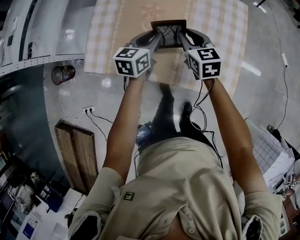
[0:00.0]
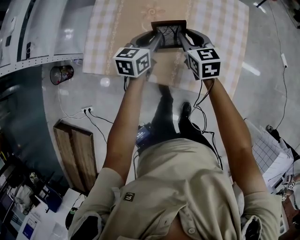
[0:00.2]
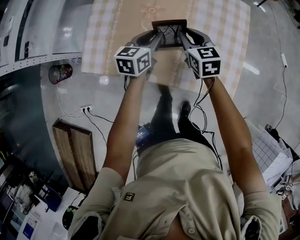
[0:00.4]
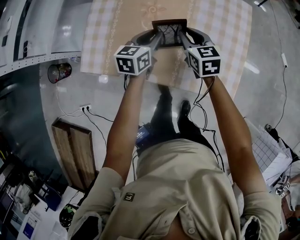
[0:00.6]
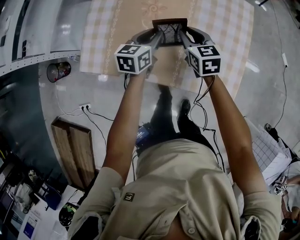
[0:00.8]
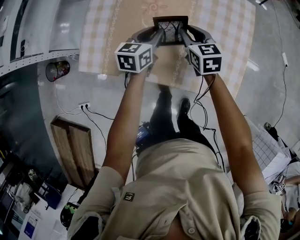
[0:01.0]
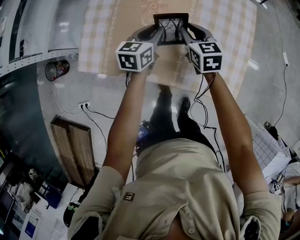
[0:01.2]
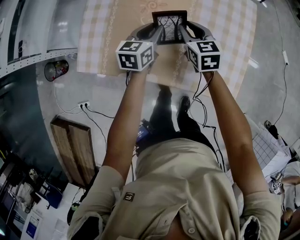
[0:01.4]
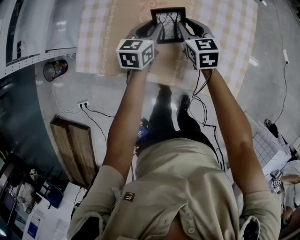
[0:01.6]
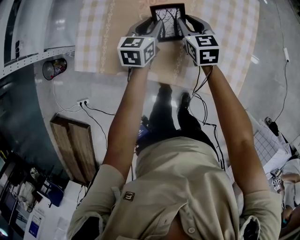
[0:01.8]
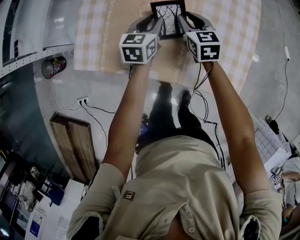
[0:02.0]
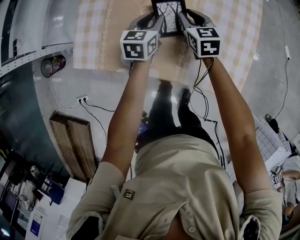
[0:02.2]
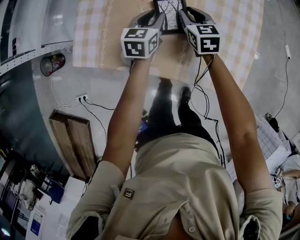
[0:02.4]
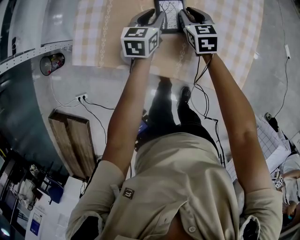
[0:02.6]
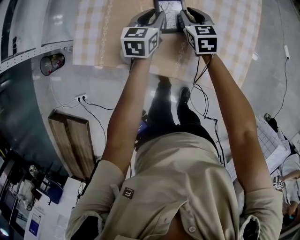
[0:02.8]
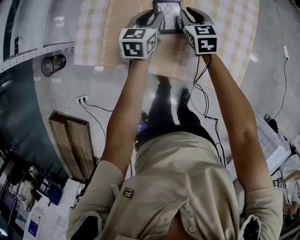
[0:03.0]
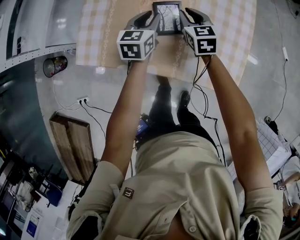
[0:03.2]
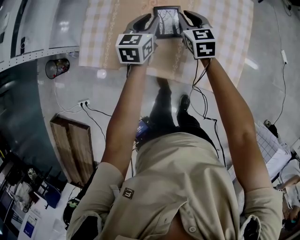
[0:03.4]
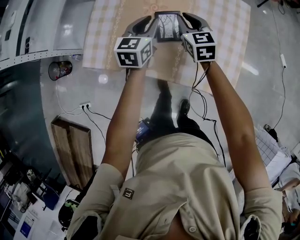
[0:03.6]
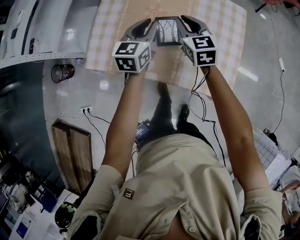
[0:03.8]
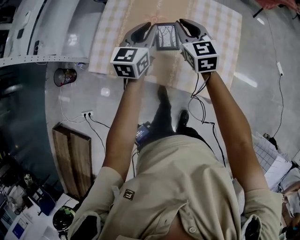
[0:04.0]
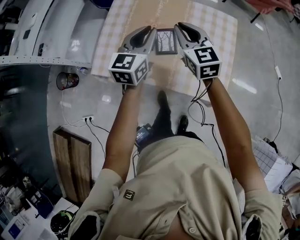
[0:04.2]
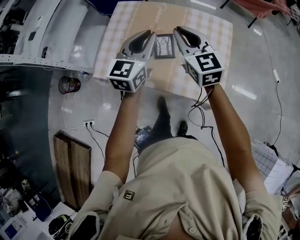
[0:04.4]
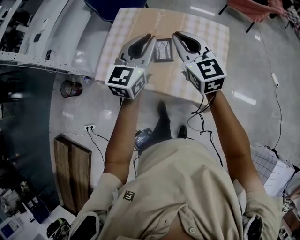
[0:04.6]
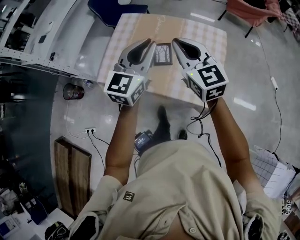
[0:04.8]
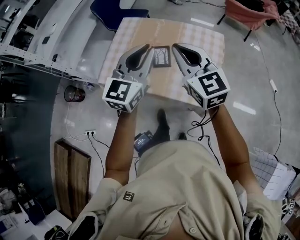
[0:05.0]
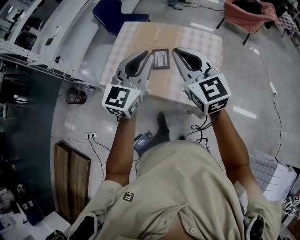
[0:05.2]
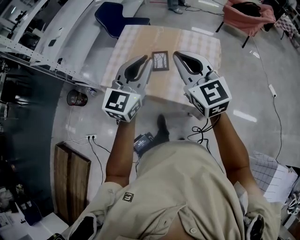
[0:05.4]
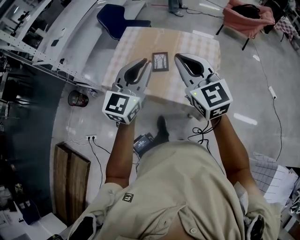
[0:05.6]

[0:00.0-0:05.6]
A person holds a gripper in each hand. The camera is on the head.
0:00.0 to 0:01.4: The grippers both shift downward by roughly 5 cm.
0:01.4 to 0:02.8: There are only small adjustments of the grippers.
0:02.8 to 0:04.2: Both grippers travel together upward, approximately 25 cm. The left gripper swivels about 20 degrees. The right gripper swivels roughly 20 degrees.
0:04.2 to 0:05.6: Both grippers move backward and upward, approximately 25 cm.

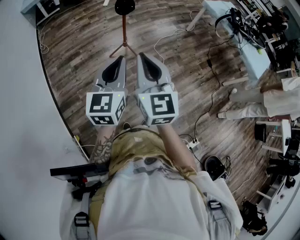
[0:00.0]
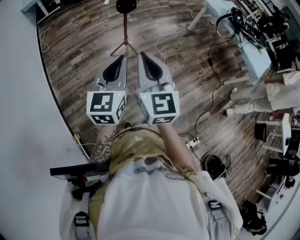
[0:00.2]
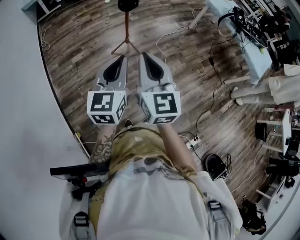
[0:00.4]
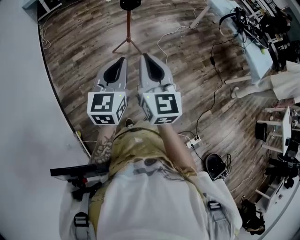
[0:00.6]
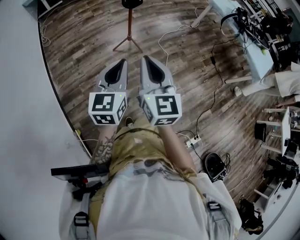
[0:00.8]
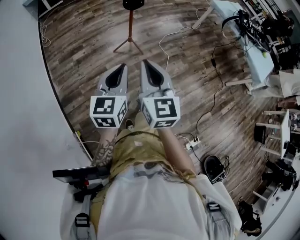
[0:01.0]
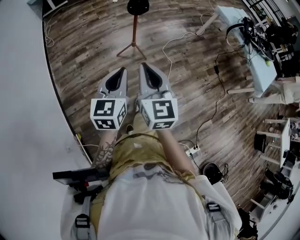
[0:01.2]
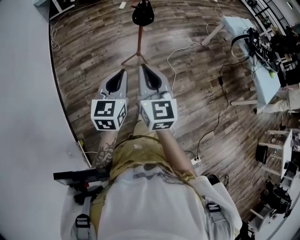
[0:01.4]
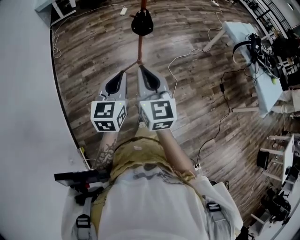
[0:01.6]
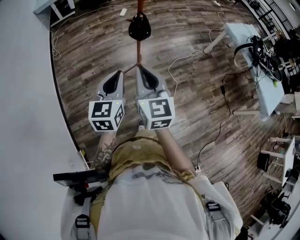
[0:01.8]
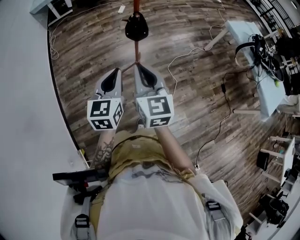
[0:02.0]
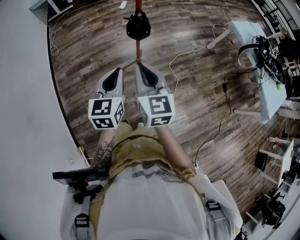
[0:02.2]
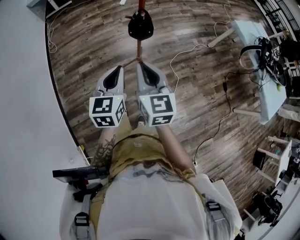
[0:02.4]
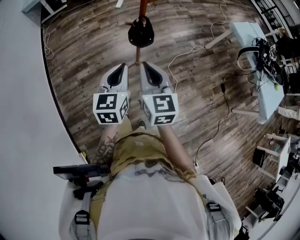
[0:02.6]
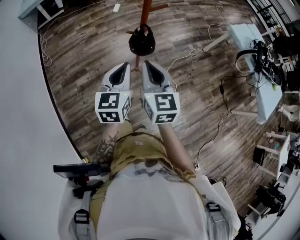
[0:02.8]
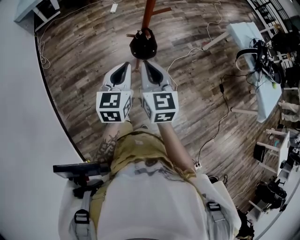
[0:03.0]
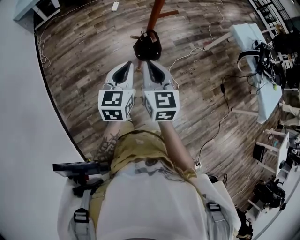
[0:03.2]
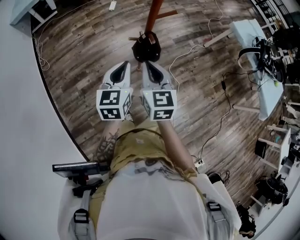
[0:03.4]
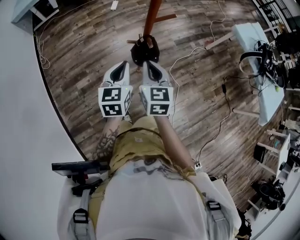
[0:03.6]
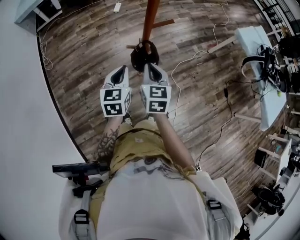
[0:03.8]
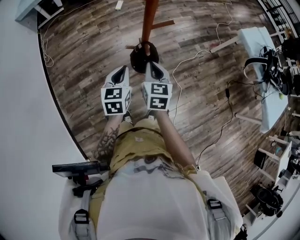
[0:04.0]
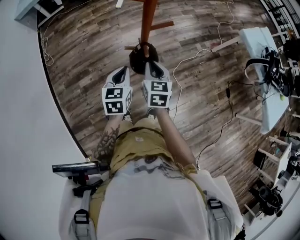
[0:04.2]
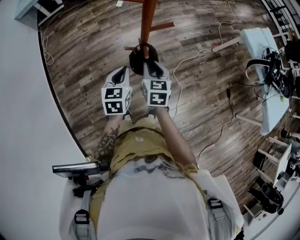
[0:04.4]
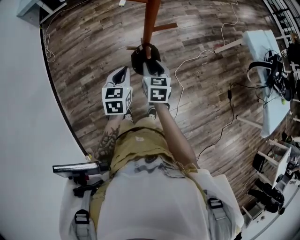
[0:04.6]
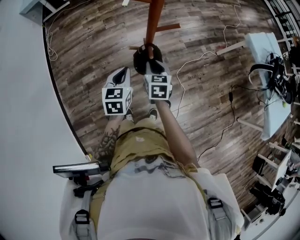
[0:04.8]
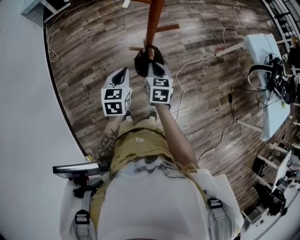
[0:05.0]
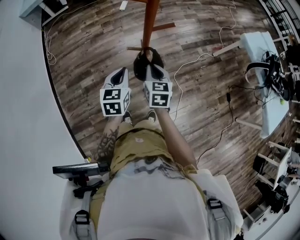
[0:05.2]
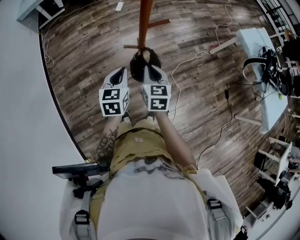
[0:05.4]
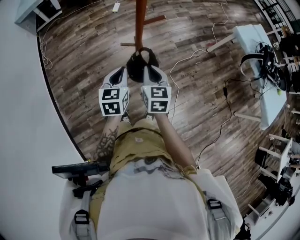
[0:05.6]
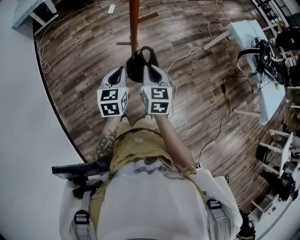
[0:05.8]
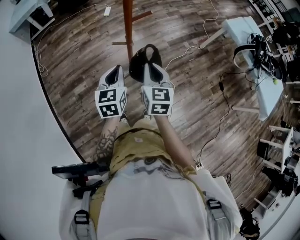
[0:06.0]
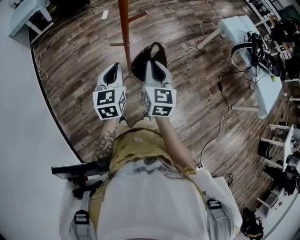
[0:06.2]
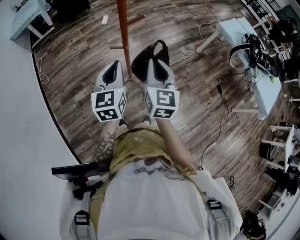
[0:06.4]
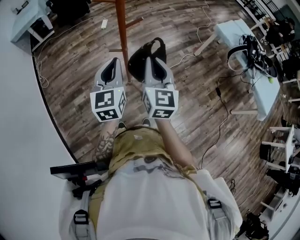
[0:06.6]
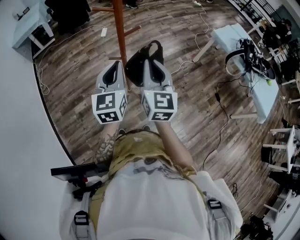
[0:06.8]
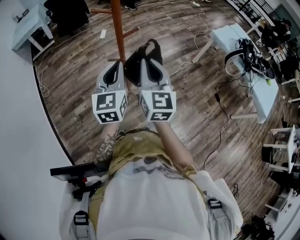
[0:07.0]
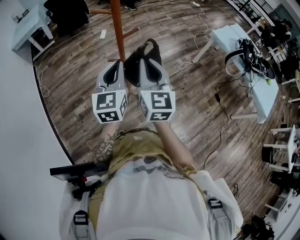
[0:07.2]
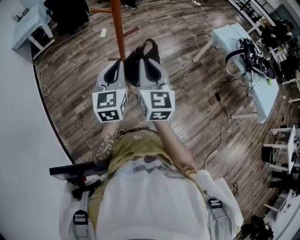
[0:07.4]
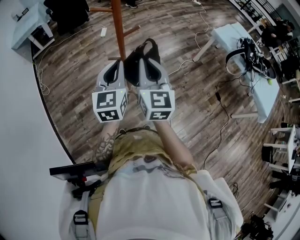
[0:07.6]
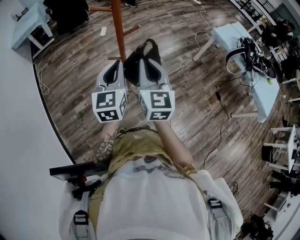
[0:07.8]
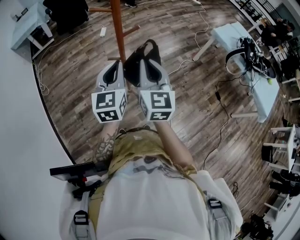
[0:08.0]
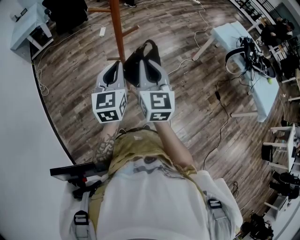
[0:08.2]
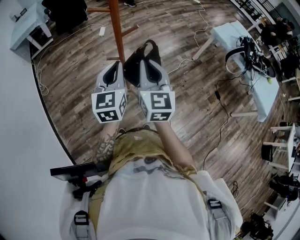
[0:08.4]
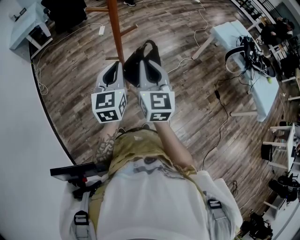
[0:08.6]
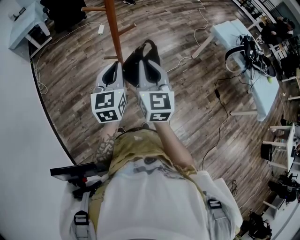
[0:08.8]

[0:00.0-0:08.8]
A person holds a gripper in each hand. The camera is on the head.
0:00.0 to 0:01.4: The right gripper moves forward, to the left and downward, roughly 15 cm. The left gripper goes roughly 15 cm forward, downward and to the left.
0:01.4 to 0:03.0: Both grippers travel together forward, roughly 35 cm.
0:03.0 to 0:04.4: The left gripper travels forward and downward by about 15 cm. The right gripper travels downward and forward by about 20 cm, and opens its fingers.
0:04.4 to 0:05.8: The left gripper travels backward by about 5 cm. Meanwhile the right gripper travels backward and upward by about 10 cm.
0:05.8 to 0:07.4: Both grippers travel together upward, some 15 cm. The right gripper changes its angle by roughly 20 degrees. Meanwhile the left gripper turns by about 20 degrees.
0:07.4 to 0:08.8: There are only small adjustments of the grippers.

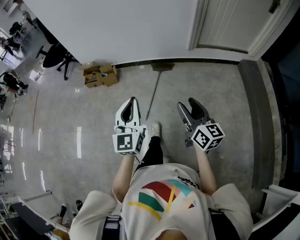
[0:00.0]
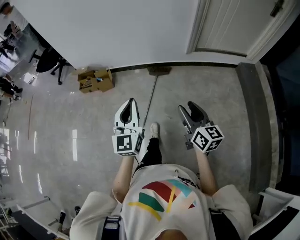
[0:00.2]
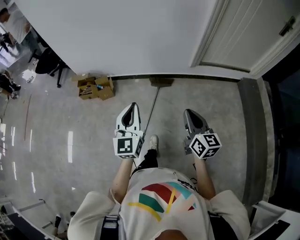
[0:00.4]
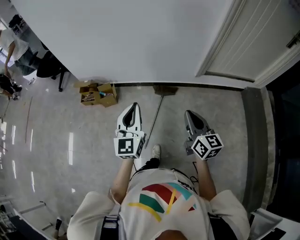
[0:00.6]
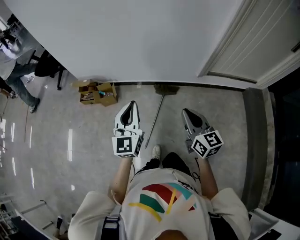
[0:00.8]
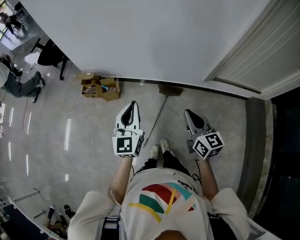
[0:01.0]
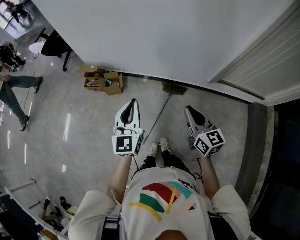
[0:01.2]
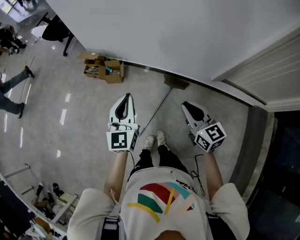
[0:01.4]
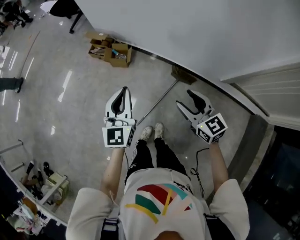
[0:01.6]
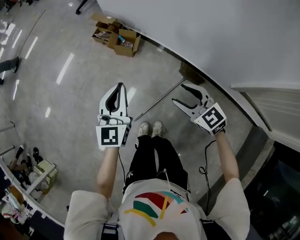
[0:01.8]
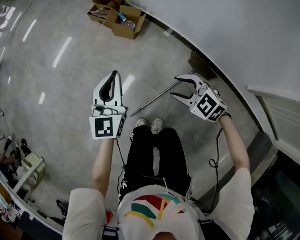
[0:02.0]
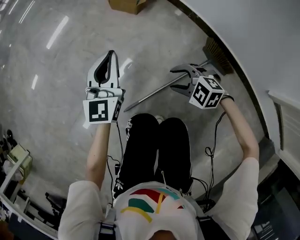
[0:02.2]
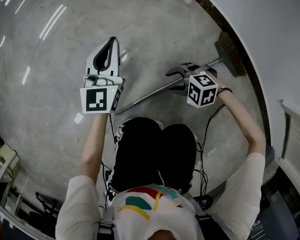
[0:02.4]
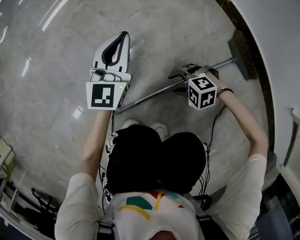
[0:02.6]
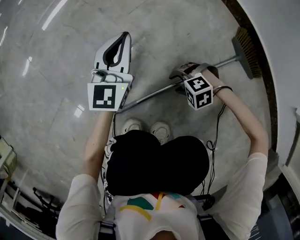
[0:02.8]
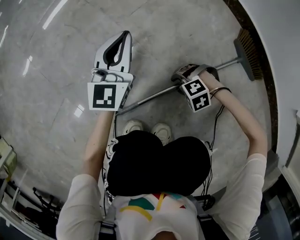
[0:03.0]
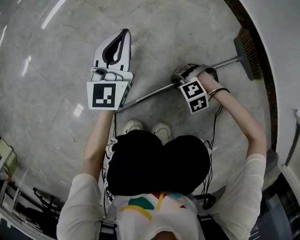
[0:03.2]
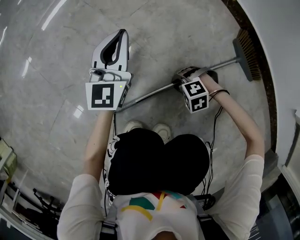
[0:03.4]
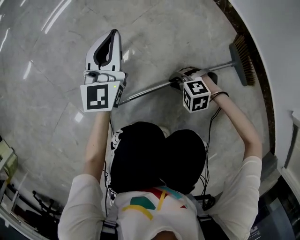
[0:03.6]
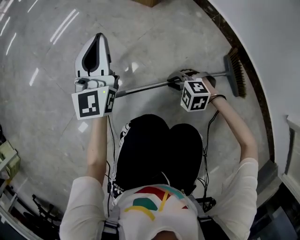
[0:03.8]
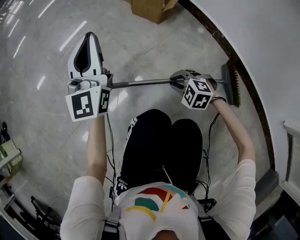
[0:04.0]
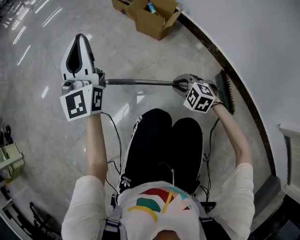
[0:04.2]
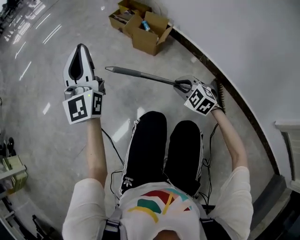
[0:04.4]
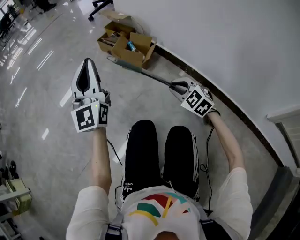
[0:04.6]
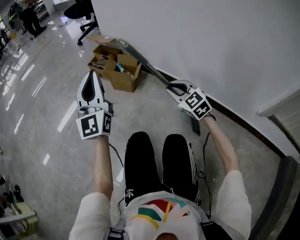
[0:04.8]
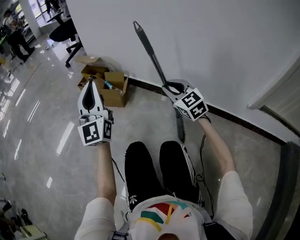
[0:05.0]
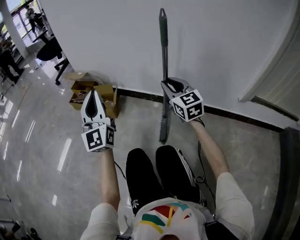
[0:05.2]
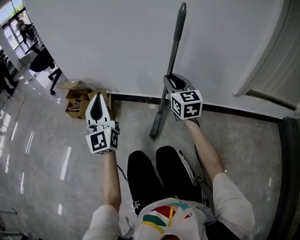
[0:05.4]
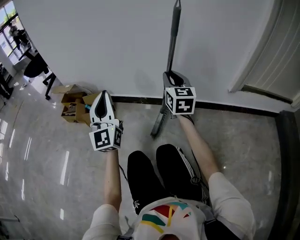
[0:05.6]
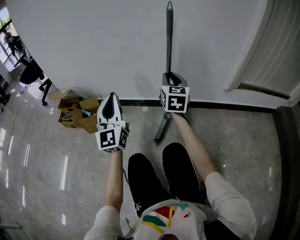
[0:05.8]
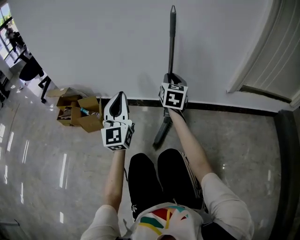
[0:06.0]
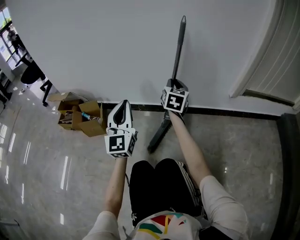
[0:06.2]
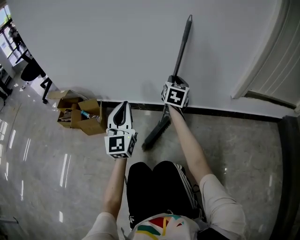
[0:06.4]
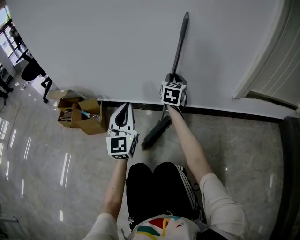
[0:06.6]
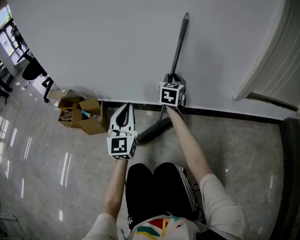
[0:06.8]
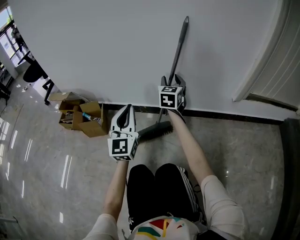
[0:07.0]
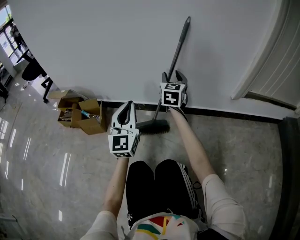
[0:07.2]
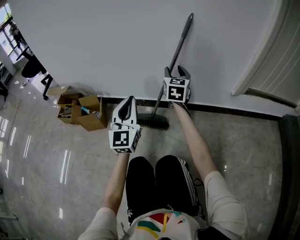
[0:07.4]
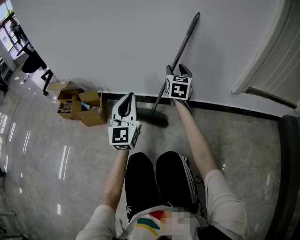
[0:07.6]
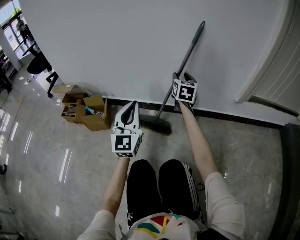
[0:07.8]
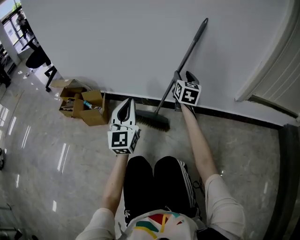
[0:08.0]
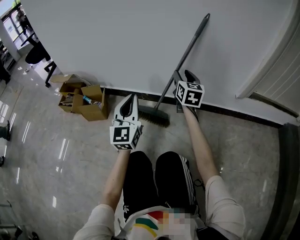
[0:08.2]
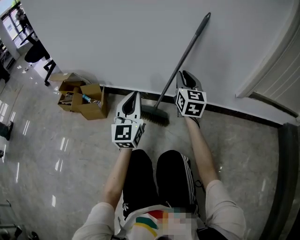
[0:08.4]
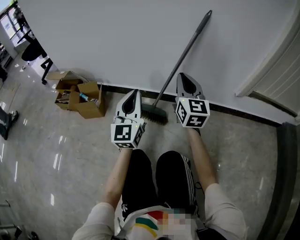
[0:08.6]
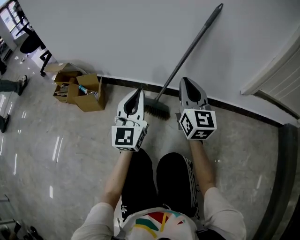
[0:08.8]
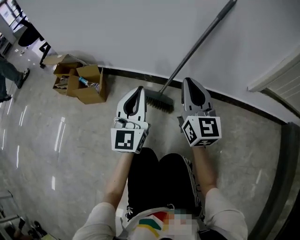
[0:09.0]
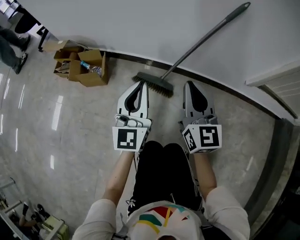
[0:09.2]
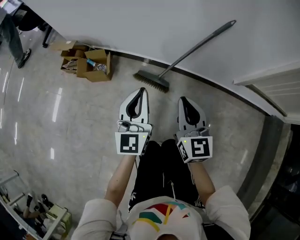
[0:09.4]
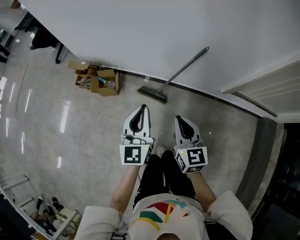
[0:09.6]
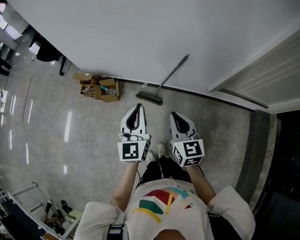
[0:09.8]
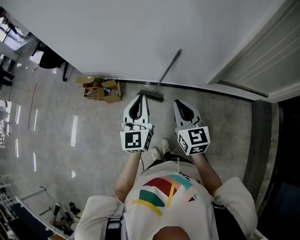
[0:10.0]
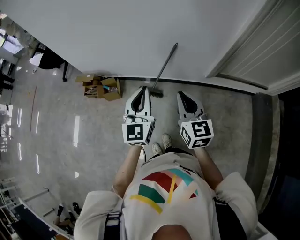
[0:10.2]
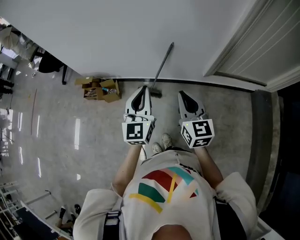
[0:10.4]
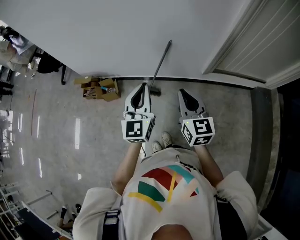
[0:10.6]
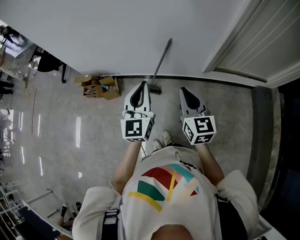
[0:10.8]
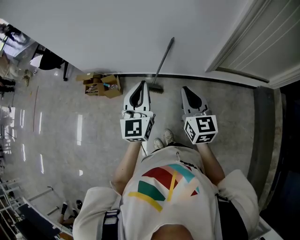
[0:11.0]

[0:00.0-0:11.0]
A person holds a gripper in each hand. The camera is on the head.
0:00.0 to 0:01.6: The pair of grippers is taken approximately 50 cm. The left gripper swivels about 30 degrees, while the right gripper changes its angle by roughly 50 degrees, and closes and opens again.
0:01.6 to 0:03.2: Both grippers travel together downward, approximately 90 cm. The right gripper points its fingers roughly 50 degrees further downward.
0:03.2 to 0:04.8: The two grippers go about 50 cm upward. The right gripper angles its fingers upward, by roughly 50 degrees, while the left gripper angles its fingers upward, by roughly 30 degrees.
0:04.8 to 0:06.2: The right gripper shifts by roughly 30 cm, and turns by approximately 80 degrees. The left gripper changes place by roughly 30 cm, and turns by some 40 degrees.
0:06.2 to 0:07.8: The right gripper opens its fingers.
0:07.8 to 0:09.4: The left gripper is displaced upward by some 15 cm. The right gripper heads backward and upward, covering about 30 cm, turns by roughly 20 degrees, and closes.
0:09.4 to 0:11.0: The grippers both shift upward and backward by roughly 40 cm.
